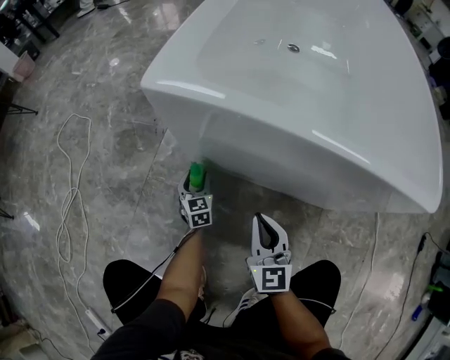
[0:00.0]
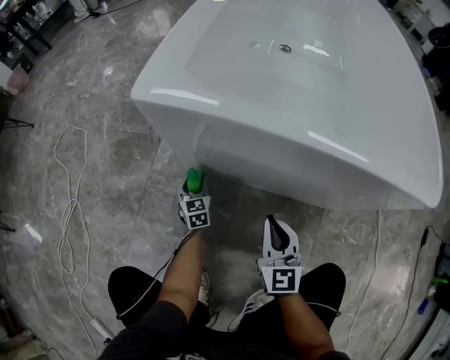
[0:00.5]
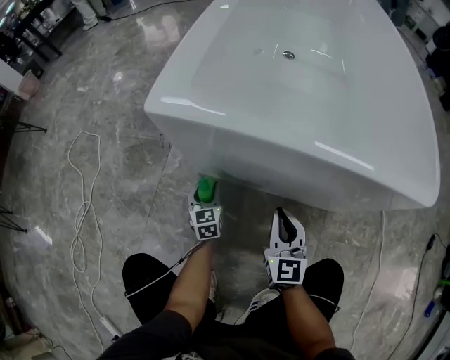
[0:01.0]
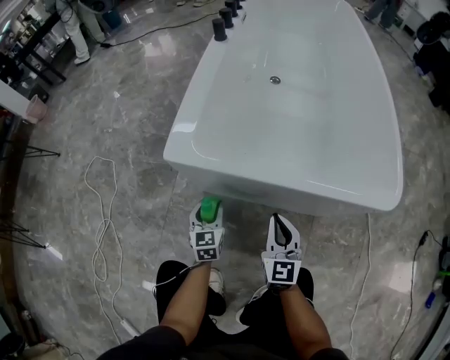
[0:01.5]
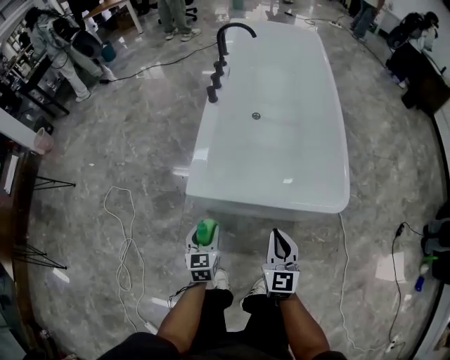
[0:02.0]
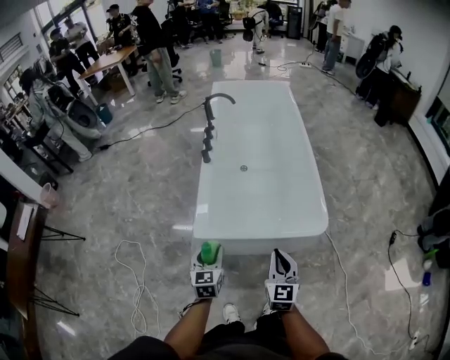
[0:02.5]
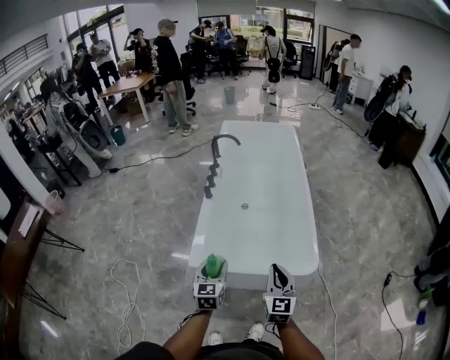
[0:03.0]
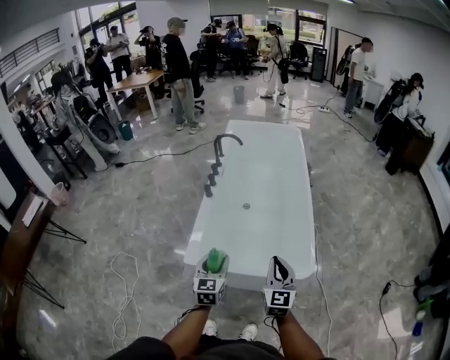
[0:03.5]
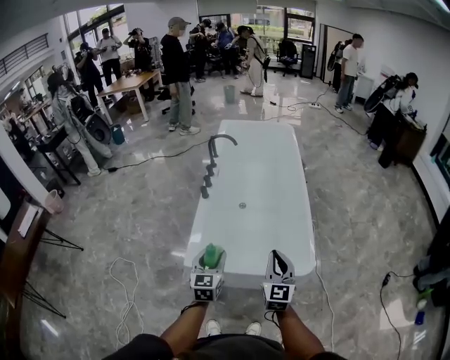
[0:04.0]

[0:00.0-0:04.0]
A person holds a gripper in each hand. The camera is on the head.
0:00.0 to 0:02.0: Both grippers travel together upward, approximately 60 cm.
0:02.0 to 0:04.0: The two grippers go roughly 25 cm upward.

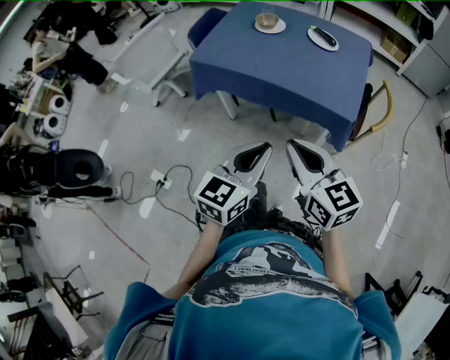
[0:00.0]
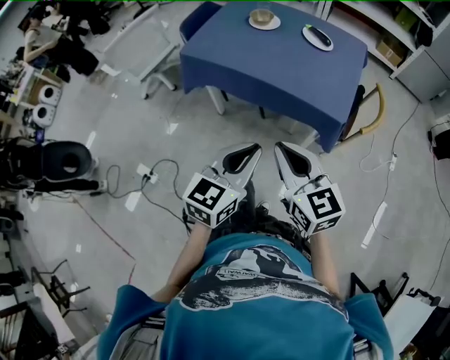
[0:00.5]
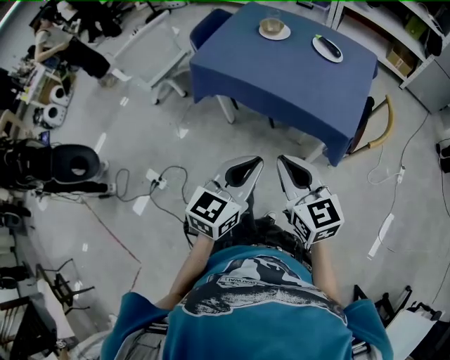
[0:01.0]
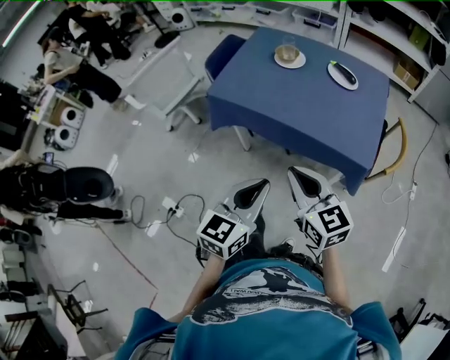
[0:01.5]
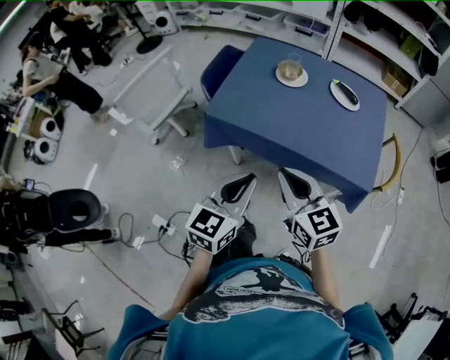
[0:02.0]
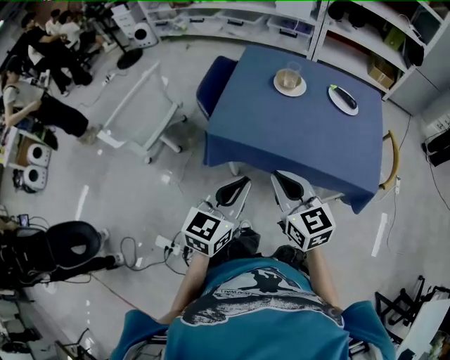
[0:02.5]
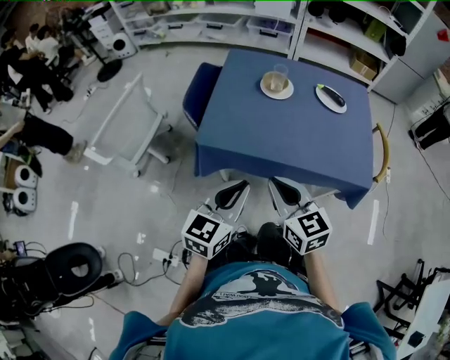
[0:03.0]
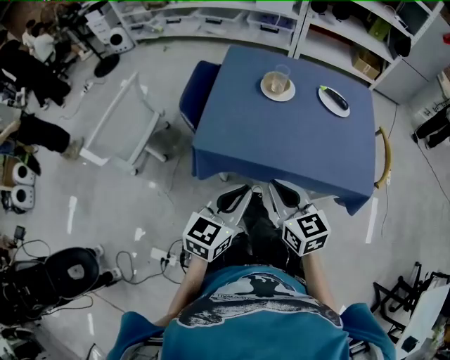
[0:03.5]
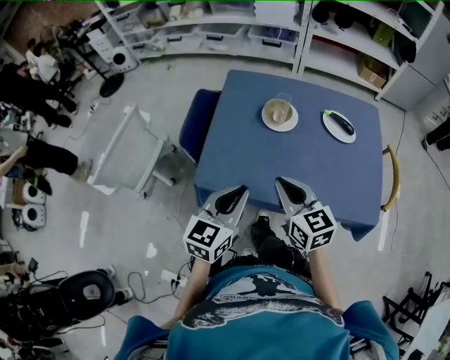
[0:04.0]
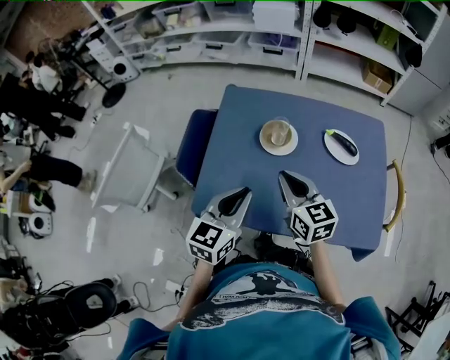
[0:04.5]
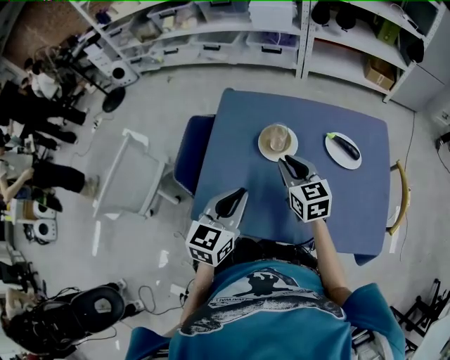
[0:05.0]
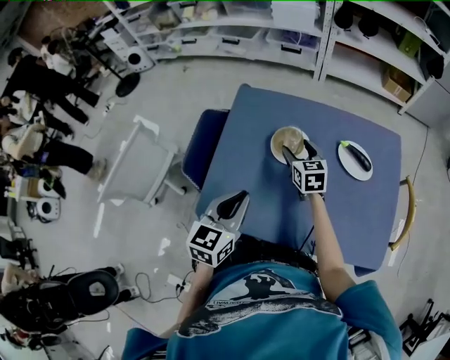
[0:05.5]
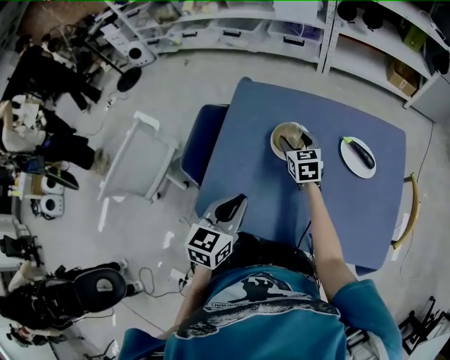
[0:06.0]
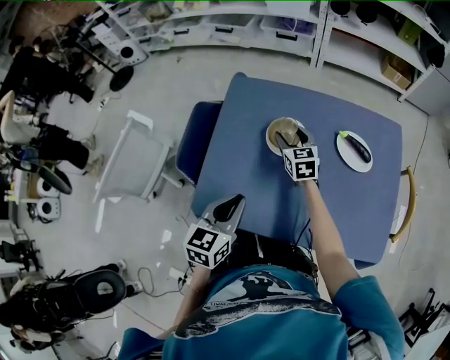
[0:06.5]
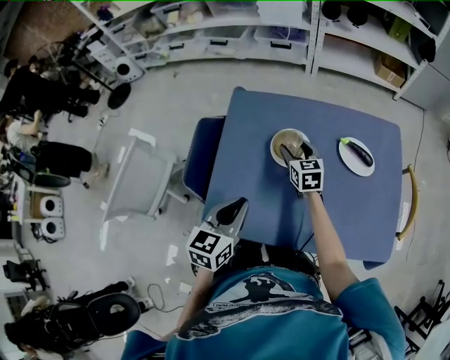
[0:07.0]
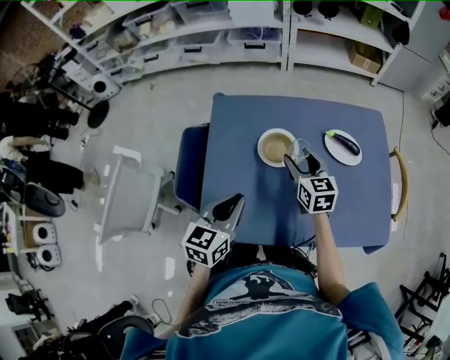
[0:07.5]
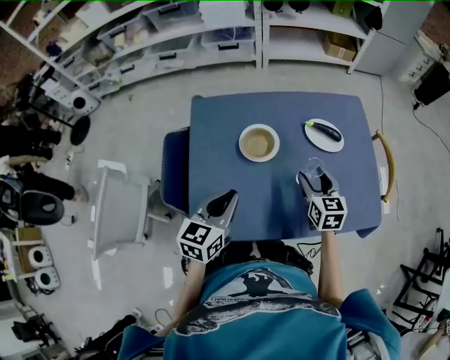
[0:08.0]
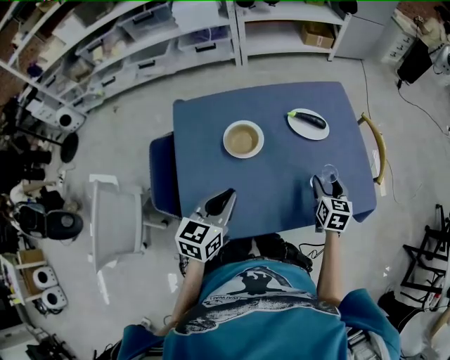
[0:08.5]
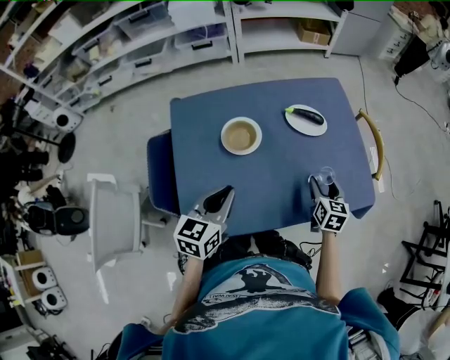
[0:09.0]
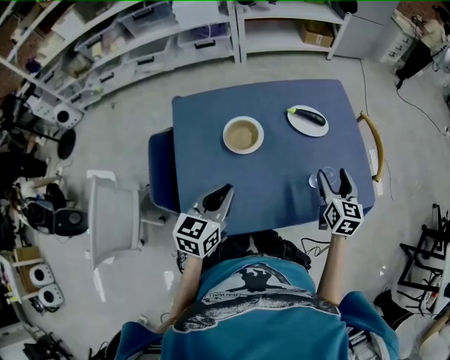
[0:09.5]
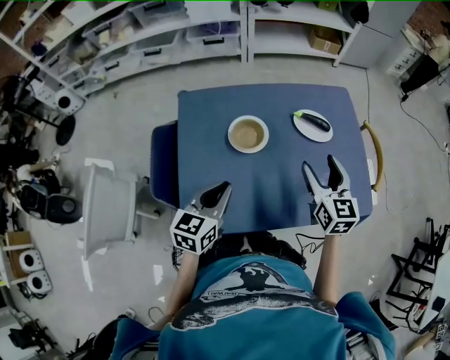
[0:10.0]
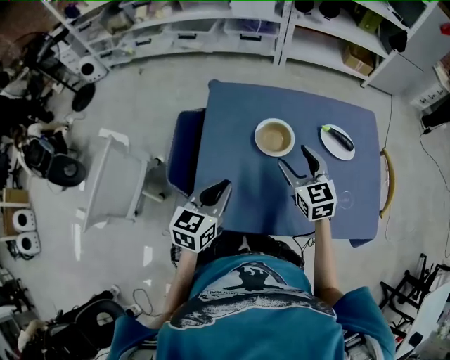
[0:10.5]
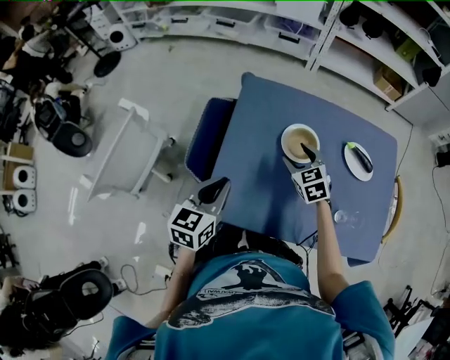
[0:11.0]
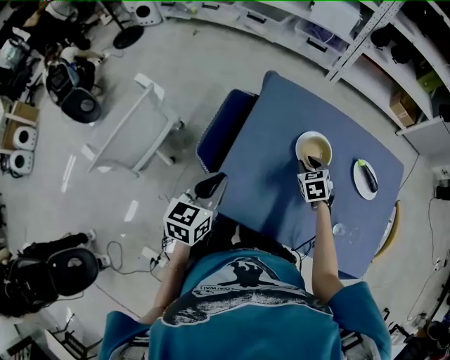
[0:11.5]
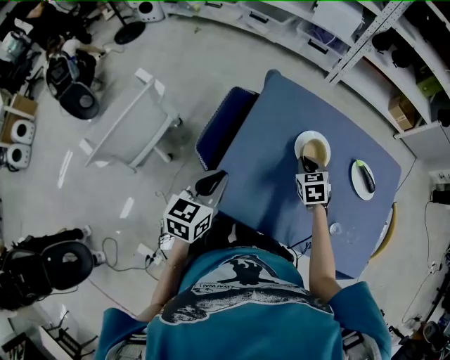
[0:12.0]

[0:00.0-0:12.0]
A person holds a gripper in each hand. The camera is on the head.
0:00.0 to 0:02.0: The two grippers go some 25 cm forward and to the left.
0:02.0 to 0:04.0: Both grippers travel together forward, approximately 20 cm.
0:04.0 to 0:06.0: The left gripper shifts some 10 cm forward, while the right gripper heads forward, covering roughly 30 cm, and opens up.
0:06.0 to 0:08.0: The right gripper moves to the right and backward, about 20 cm, and swivels some 20 degrees.
0:08.0 to 0:10.0: Both grippers travel together upward, roughly 50 cm.
0:10.0 to 0:12.0: The left gripper changes place by roughly 15 cm, and swivels roughly 30 degrees; the right gripper shifts by approximately 25 cm, tilts its fingers approximately 30 degrees downward, and closes up.

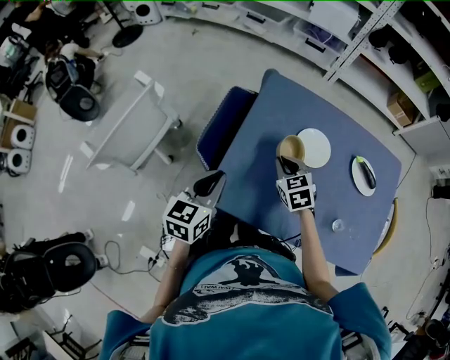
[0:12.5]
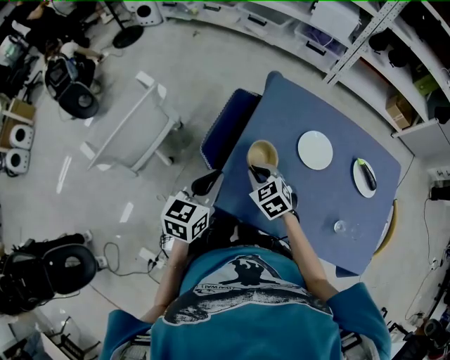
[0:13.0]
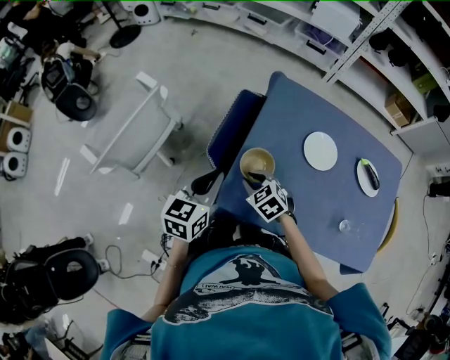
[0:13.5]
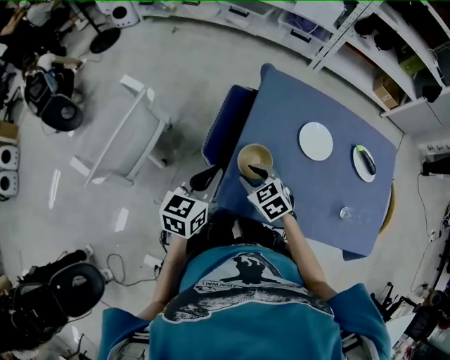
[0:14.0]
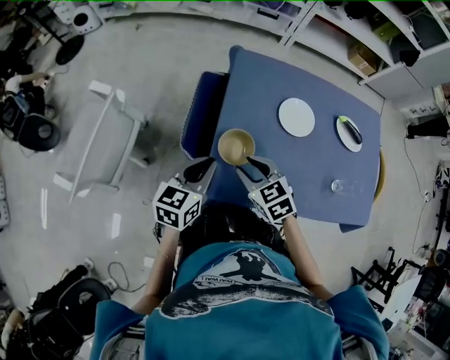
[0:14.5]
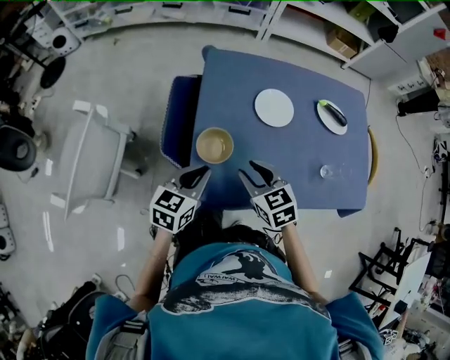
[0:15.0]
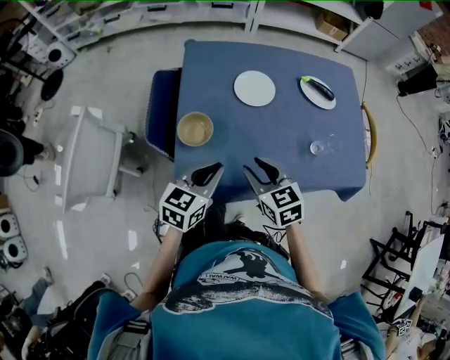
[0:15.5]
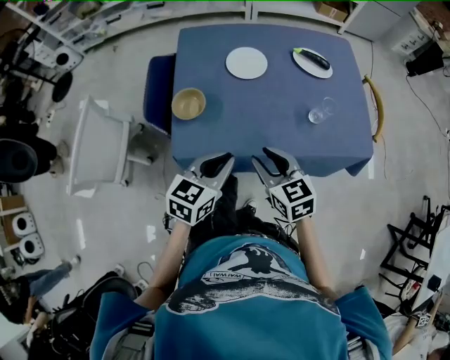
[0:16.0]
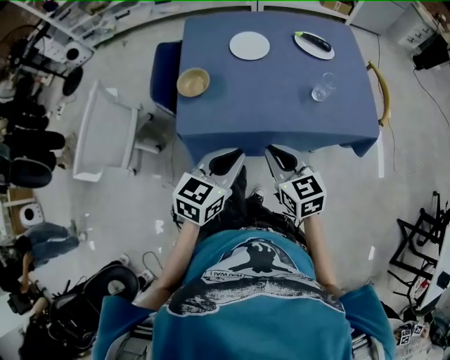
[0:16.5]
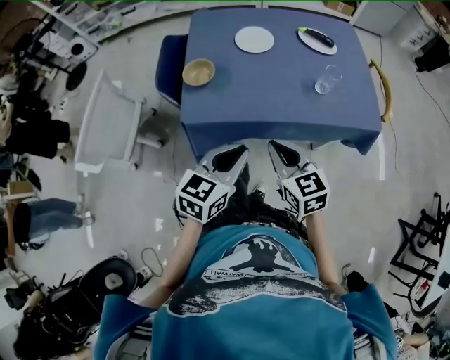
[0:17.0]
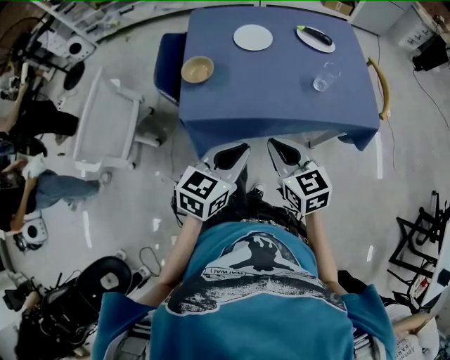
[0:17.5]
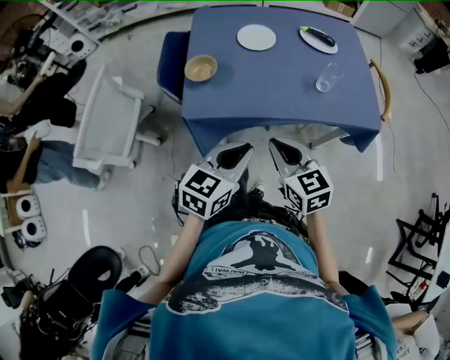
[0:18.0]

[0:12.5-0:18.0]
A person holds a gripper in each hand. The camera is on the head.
0:12.5 to 0:14.5: The right gripper goes some 15 cm to the left and backward, and opens its fingers.
0:14.5 to 0:16.0: Both grippers move to the right and backward, roughly 25 cm. The right gripper turns by approximately 30 degrees.
0:16.0 to 0:18.0: Both grippers move backward, approximately 10 cm. The right gripper closes up.

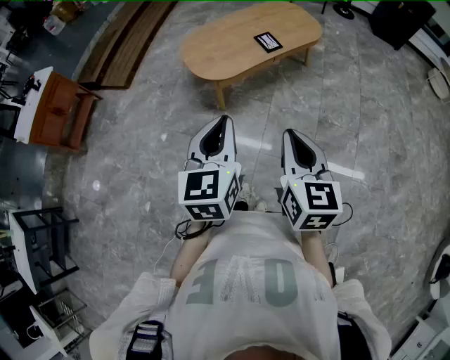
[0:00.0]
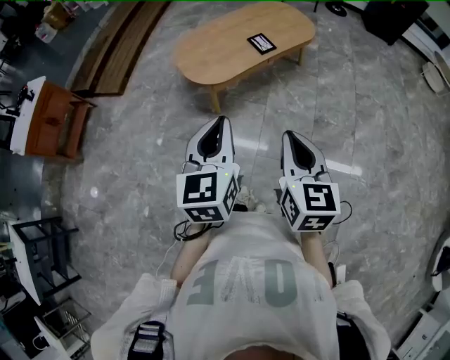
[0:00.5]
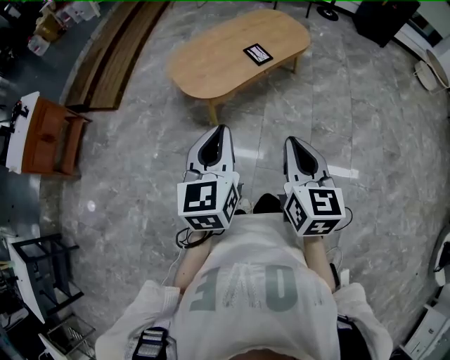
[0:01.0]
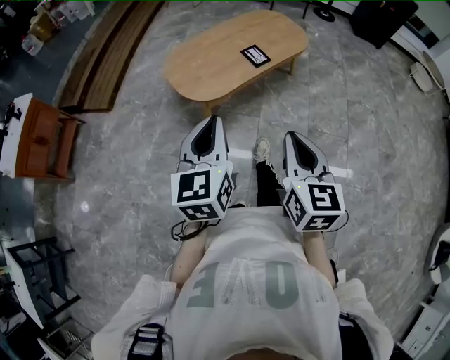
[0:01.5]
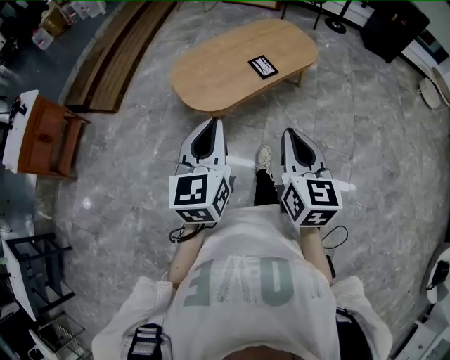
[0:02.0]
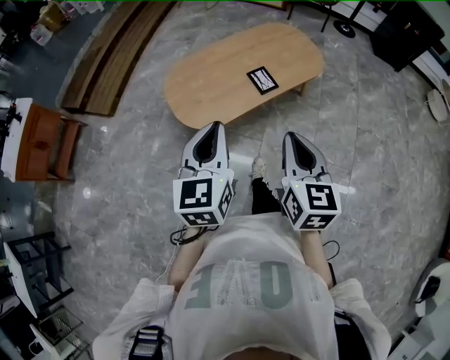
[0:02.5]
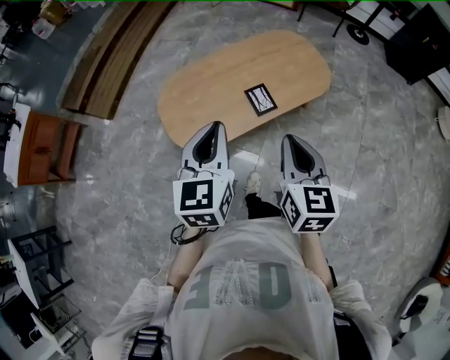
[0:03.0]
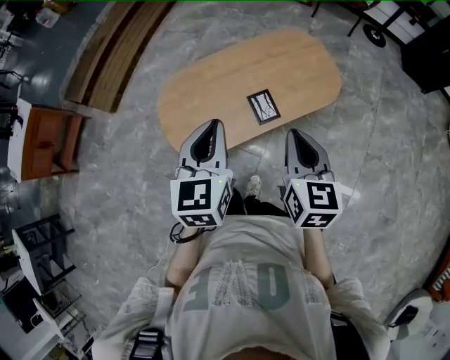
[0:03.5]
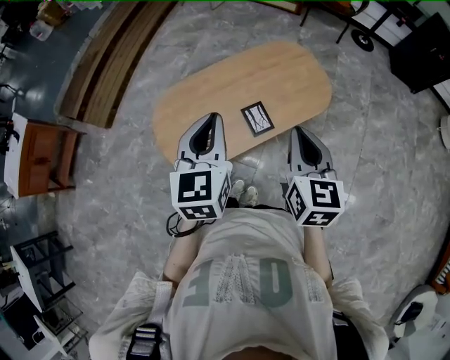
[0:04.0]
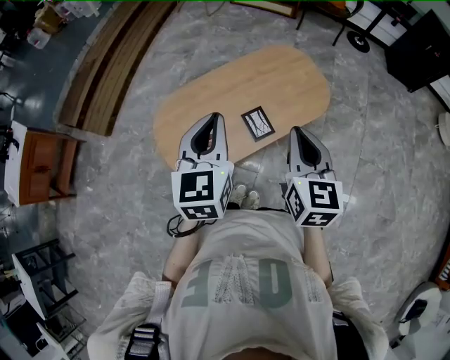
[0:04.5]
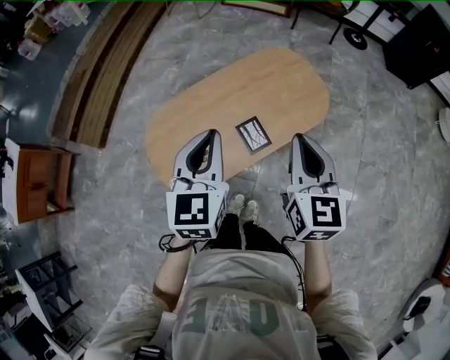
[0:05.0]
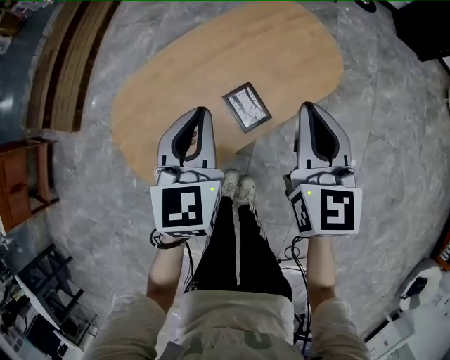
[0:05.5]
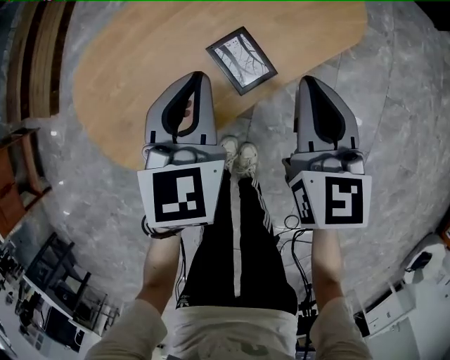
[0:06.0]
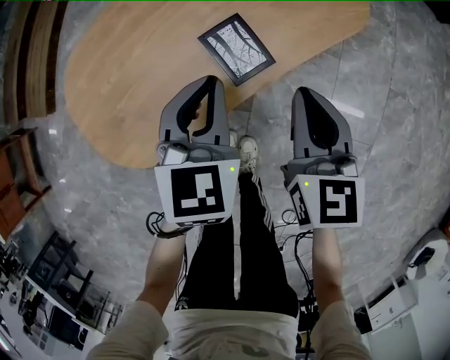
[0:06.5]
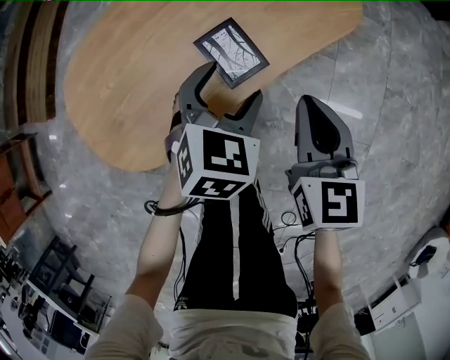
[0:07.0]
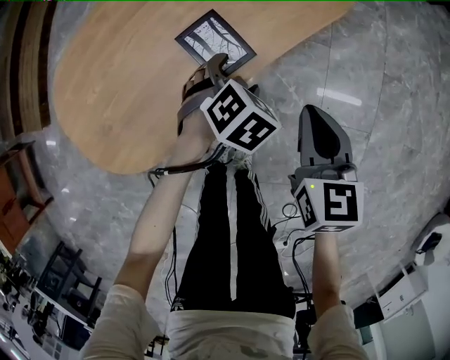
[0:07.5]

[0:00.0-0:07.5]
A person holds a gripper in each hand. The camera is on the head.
0:00.0 to 0:02.0: The grippers both shift forward by approximately 15 cm.
0:02.0 to 0:04.0: The two grippers travel together, forward, some 40 cm.
0:04.0 to 0:05.5: The two grippers go approximately 20 cm downward and forward.
0:05.5 to 0:07.5: The right gripper moves downward, about 25 cm, and changes its angle by about 20 degrees. Meanwhile the left gripper goes roughly 35 cm downward and to the right, tips its fingers downward by about 40 degrees, and opens.
